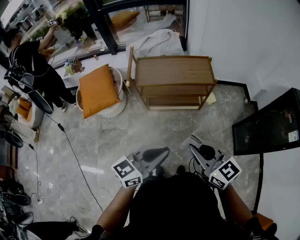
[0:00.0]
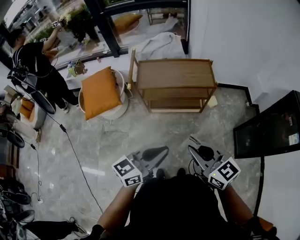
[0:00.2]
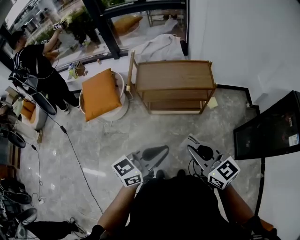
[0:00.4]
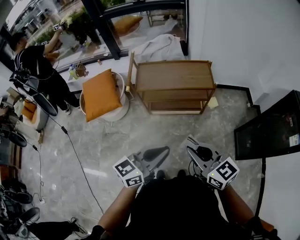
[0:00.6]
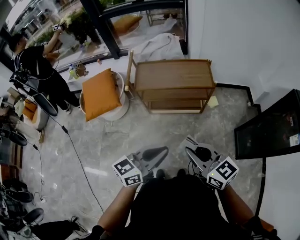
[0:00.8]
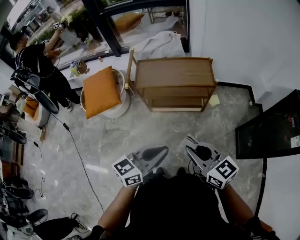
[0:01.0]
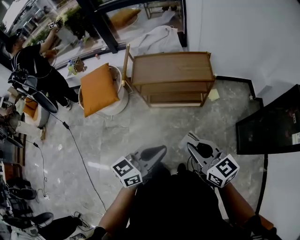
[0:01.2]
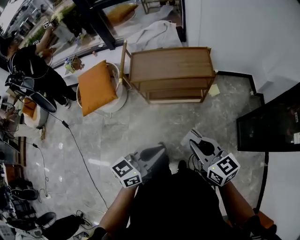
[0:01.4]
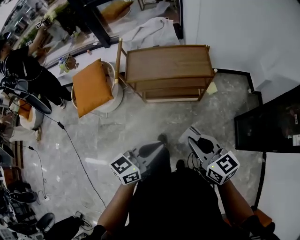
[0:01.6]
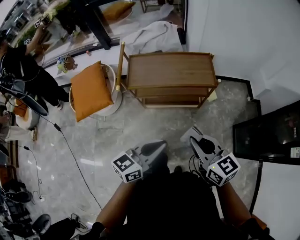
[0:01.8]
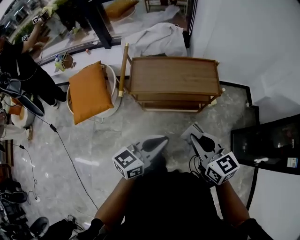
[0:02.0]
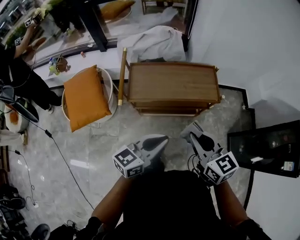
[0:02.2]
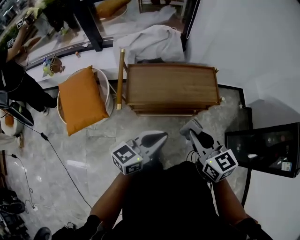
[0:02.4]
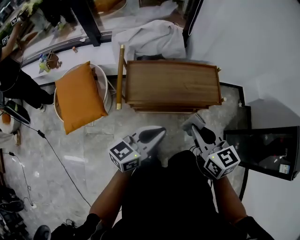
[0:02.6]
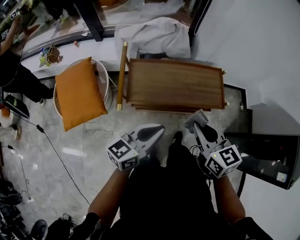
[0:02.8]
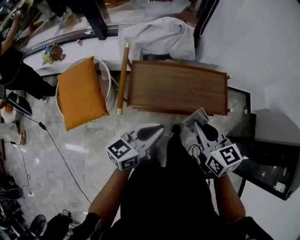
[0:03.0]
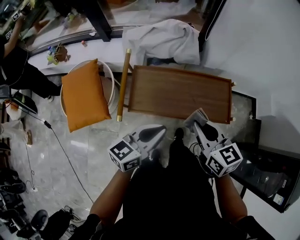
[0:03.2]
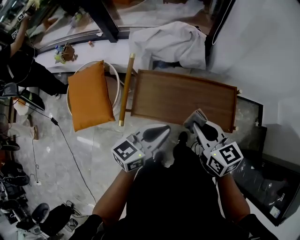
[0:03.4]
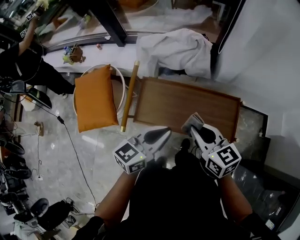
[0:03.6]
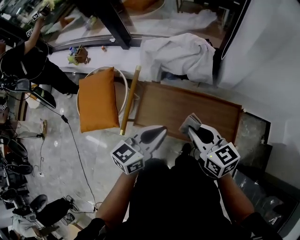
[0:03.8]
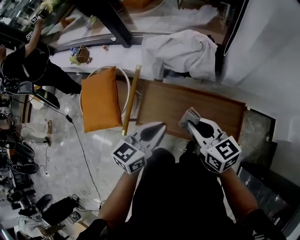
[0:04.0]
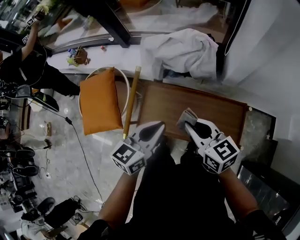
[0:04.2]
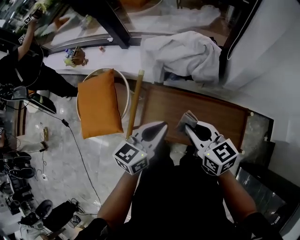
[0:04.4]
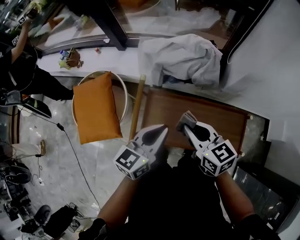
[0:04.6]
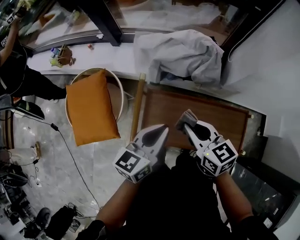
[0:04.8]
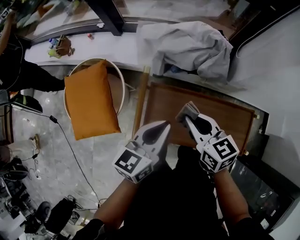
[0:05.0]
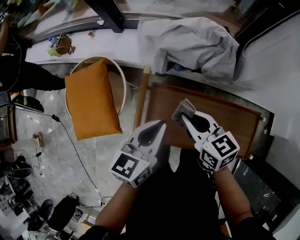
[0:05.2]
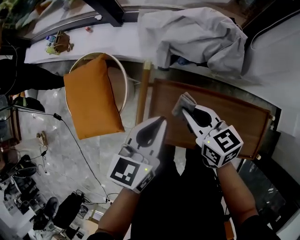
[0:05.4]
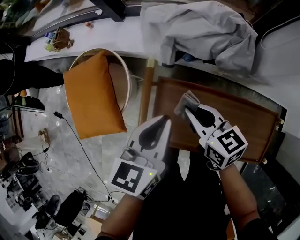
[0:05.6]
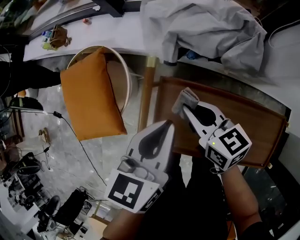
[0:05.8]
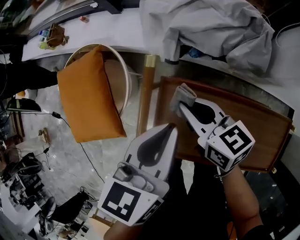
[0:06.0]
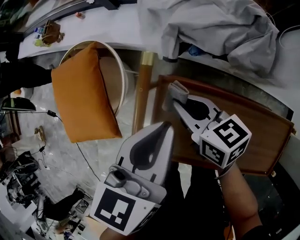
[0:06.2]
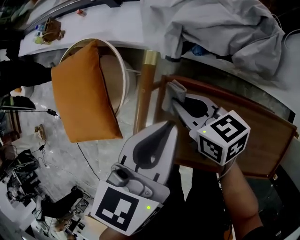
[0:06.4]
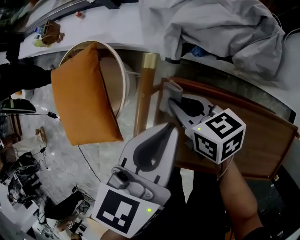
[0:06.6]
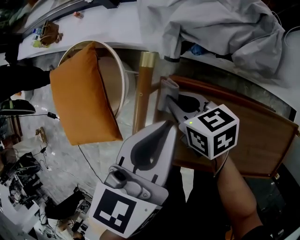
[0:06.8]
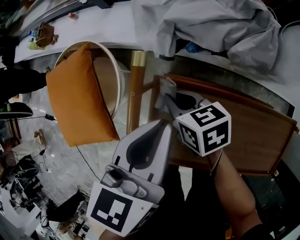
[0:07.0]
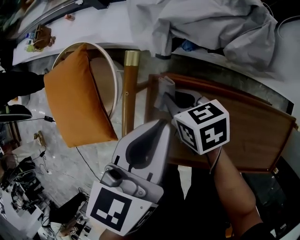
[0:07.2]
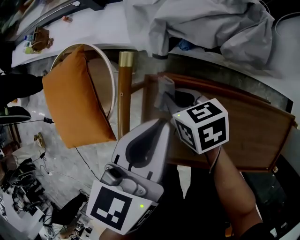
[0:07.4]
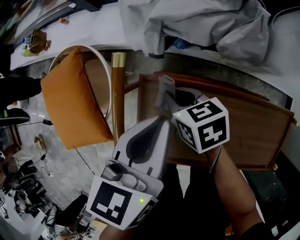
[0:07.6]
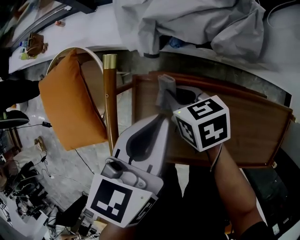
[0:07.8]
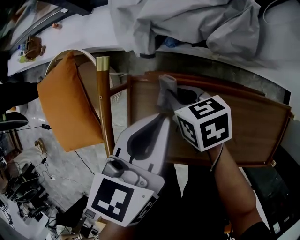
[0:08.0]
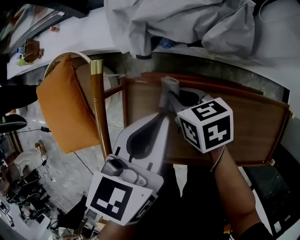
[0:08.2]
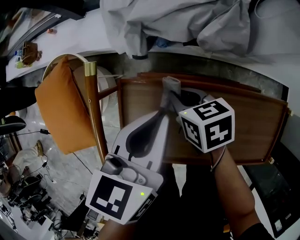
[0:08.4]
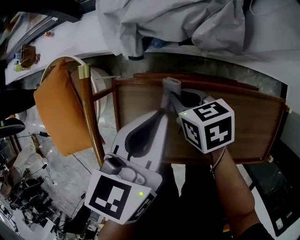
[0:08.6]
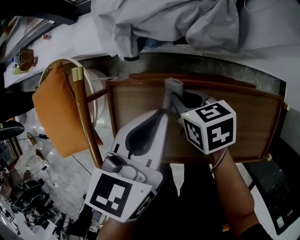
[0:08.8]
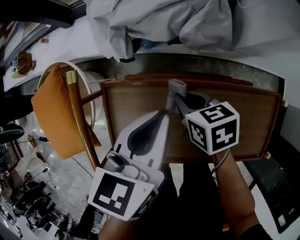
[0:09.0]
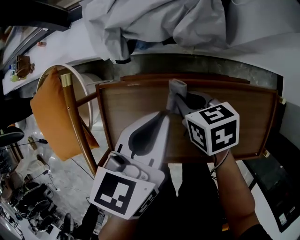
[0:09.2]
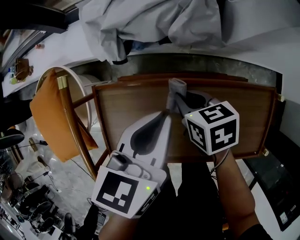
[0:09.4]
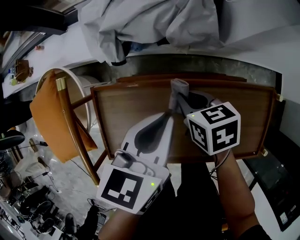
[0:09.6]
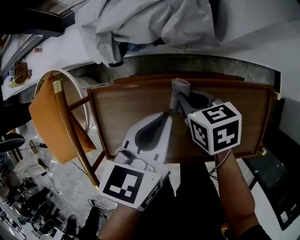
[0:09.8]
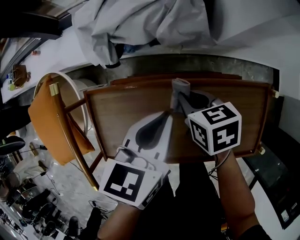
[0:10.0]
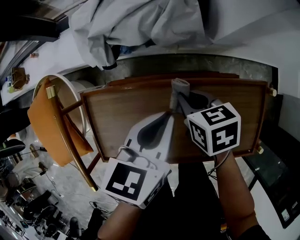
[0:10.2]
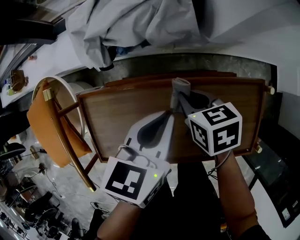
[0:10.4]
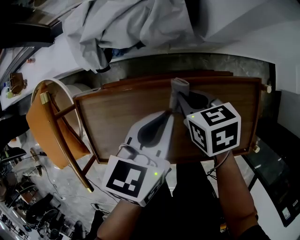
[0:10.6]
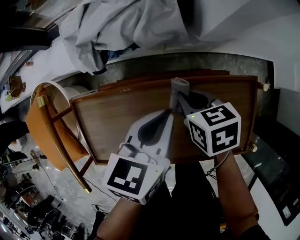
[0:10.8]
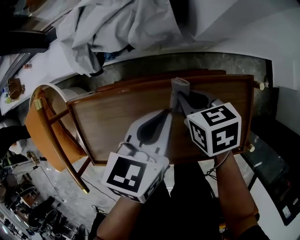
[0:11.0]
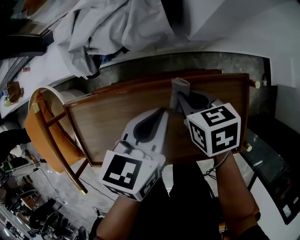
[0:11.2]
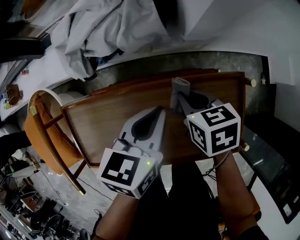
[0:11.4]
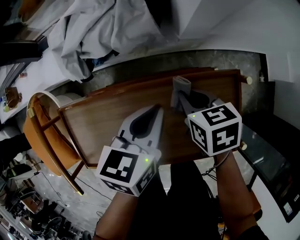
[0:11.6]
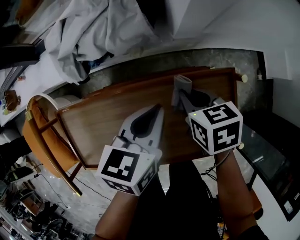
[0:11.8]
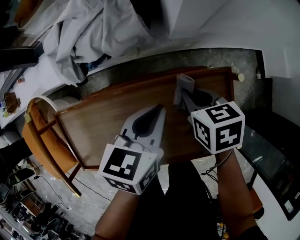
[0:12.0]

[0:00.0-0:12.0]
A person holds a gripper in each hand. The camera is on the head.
0:00.0 to 0:01.6: The right gripper travels to the right and forward by some 10 cm, while the left gripper travels forward and to the right by approximately 10 cm.
0:01.6 to 0:03.0: Both grippers move forward and to the left, some 35 cm.
0:03.0 to 0:04.4: The grippers both shift forward by about 20 cm. The left gripper swivels roughly 20 degrees, while the right gripper changes its angle by roughly 20 degrees.
0:04.4 to 0:06.0: The right gripper heads downward, forward and to the left, covering about 30 cm; the left gripper goes approximately 20 cm forward, downward and to the left, and turns by roughly 20 degrees.
0:06.0 to 0:07.6: The left gripper shifts by some 5 cm, while the right gripper goes some 10 cm downward, and turns by approximately 20 degrees.
0:07.6 to 0:09.0: Both grippers travel together to the right, roughly 10 cm.
0:09.0 to 0:10.4: Both grippers travel together to the right, some 10 cm.
0:10.4 to 0:12.0: The grippers both shift to the right by roughly 15 cm.

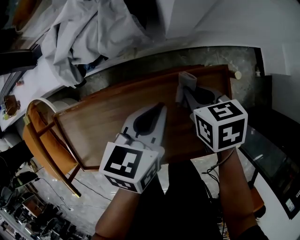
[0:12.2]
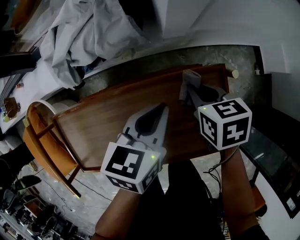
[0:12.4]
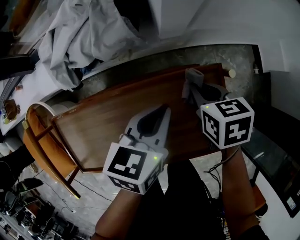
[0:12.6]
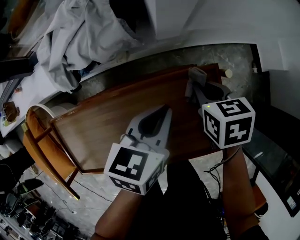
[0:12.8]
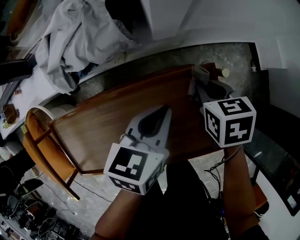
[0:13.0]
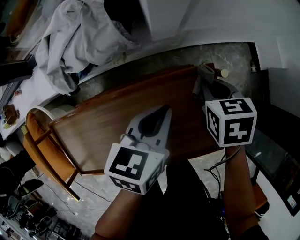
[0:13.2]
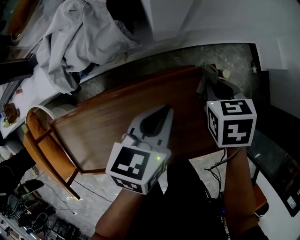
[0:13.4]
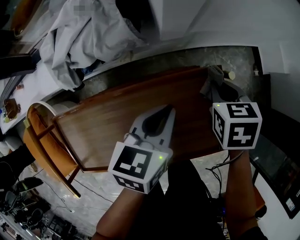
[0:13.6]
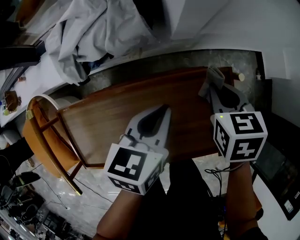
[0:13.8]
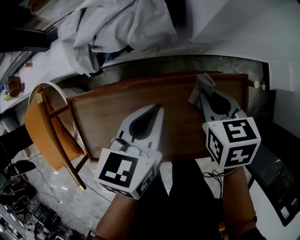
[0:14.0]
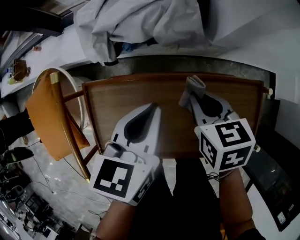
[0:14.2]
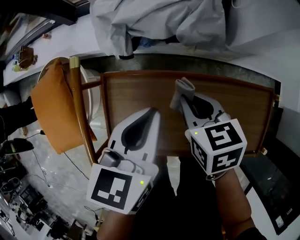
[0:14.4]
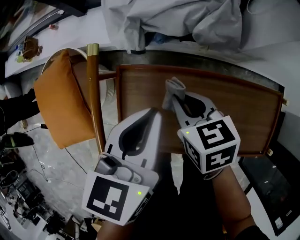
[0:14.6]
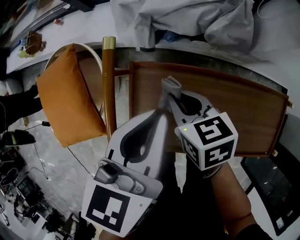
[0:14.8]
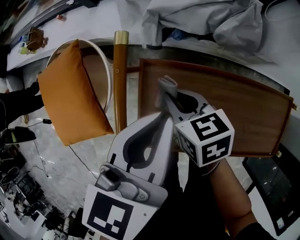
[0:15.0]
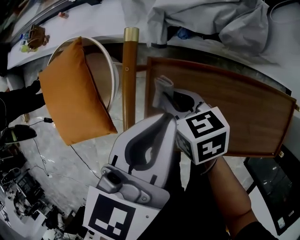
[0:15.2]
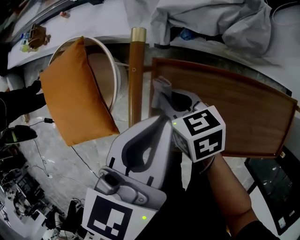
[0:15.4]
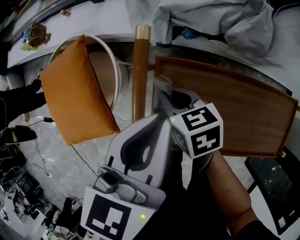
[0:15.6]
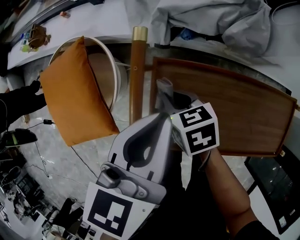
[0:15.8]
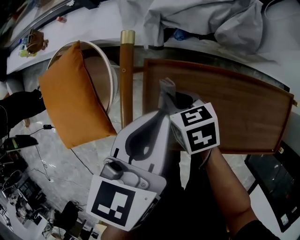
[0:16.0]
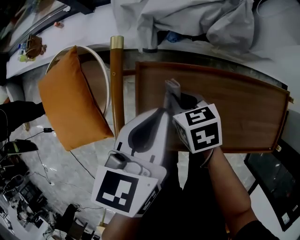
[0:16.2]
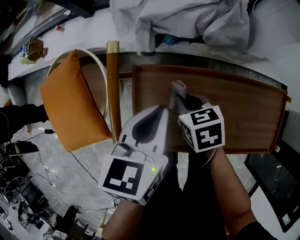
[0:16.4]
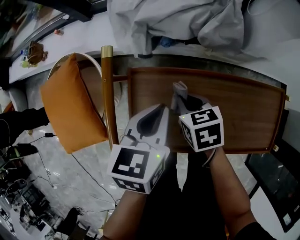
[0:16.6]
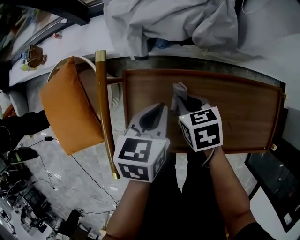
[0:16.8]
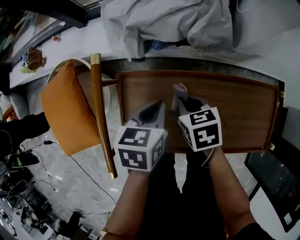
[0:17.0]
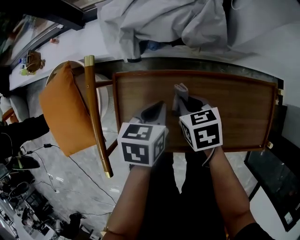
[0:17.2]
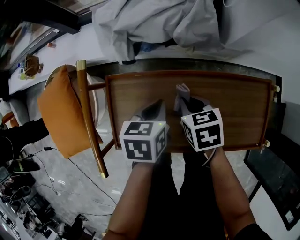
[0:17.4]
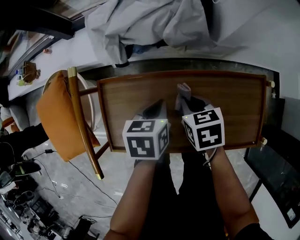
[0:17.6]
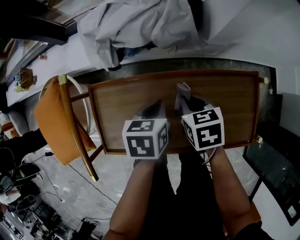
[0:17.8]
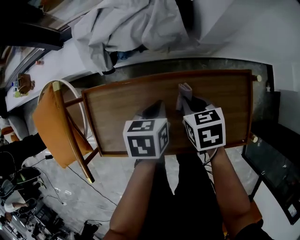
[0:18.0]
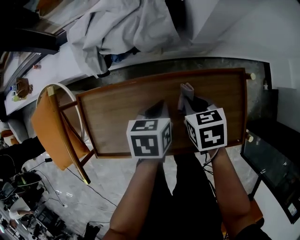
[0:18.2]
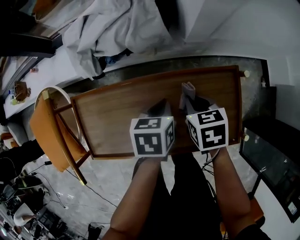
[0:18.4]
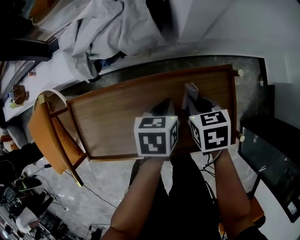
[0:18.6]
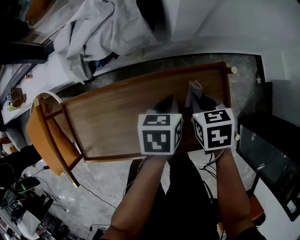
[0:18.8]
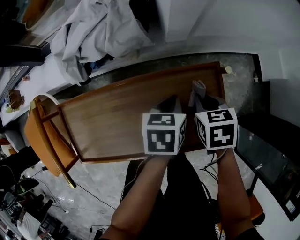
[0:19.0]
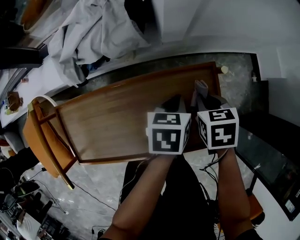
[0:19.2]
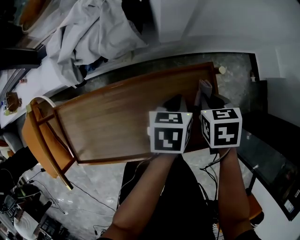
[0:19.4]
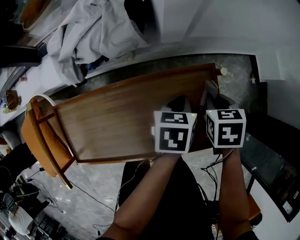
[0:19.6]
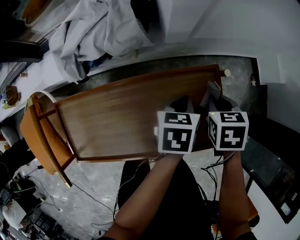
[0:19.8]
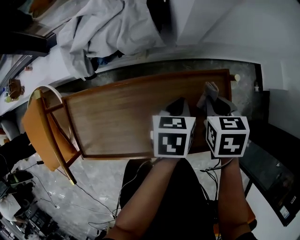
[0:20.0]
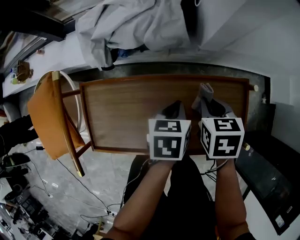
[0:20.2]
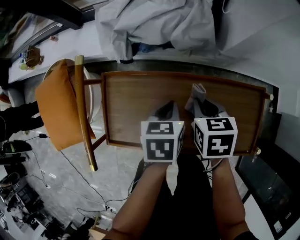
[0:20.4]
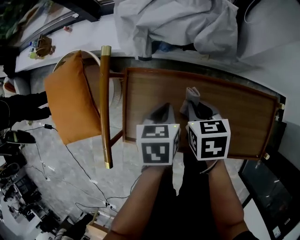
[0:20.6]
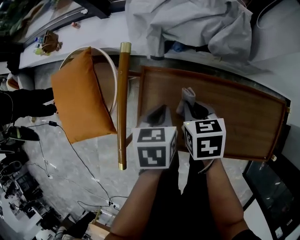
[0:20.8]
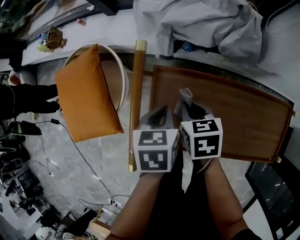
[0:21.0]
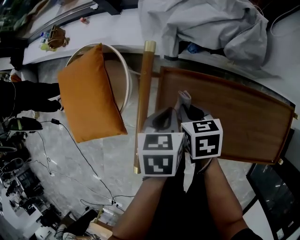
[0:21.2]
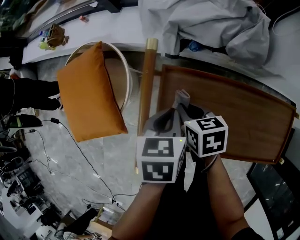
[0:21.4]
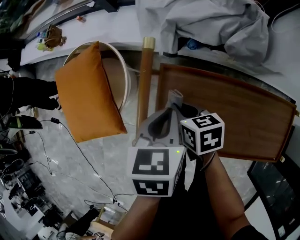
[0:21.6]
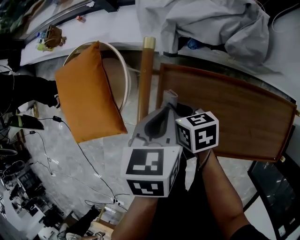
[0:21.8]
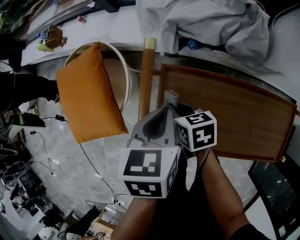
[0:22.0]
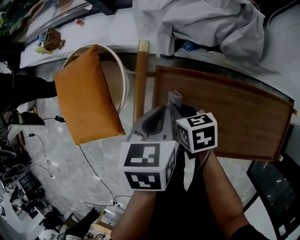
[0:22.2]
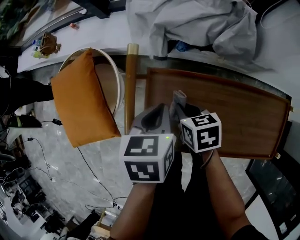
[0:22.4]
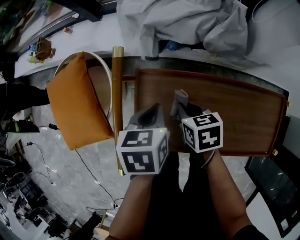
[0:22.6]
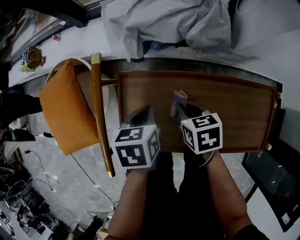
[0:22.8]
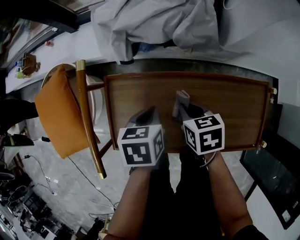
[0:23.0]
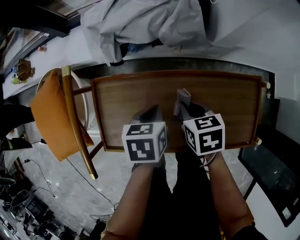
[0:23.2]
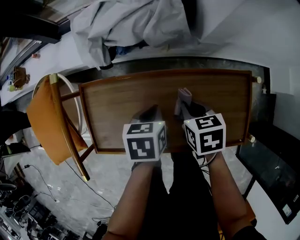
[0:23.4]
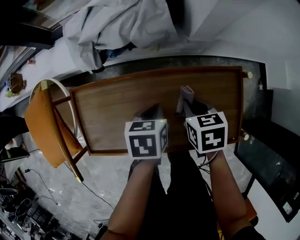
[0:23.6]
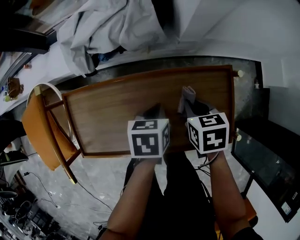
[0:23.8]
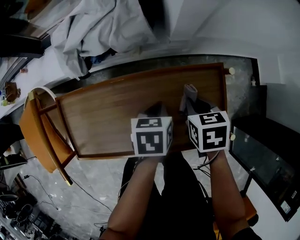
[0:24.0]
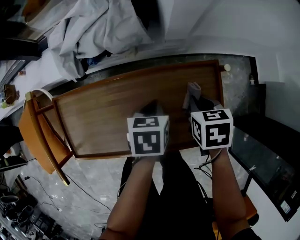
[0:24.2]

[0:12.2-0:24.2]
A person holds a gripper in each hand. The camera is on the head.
0:12.2 to 0:13.8: The right gripper heads upward, covering approximately 5 cm.
0:13.8 to 0:15.2: The left gripper moves some 35 cm, and swivels some 20 degrees, while the right gripper changes place by about 50 cm, and turns by approximately 40 degrees.
0:15.2 to 0:16.6: The right gripper moves to the right, some 10 cm, while the left gripper goes approximately 10 cm downward.
0:16.6 to 0:18.2: The right gripper shifts approximately 25 cm to the right. Meanwhile the left gripper travels to the right and downward by some 25 cm.
0:18.2 to 0:19.8: The two grippers go approximately 20 cm to the right.
0:19.8 to 0:21.2: Both grippers are carried about 50 cm. The left gripper rotates some 30 degrees, while the right gripper swivels roughly 30 degrees.
0:21.2 to 0:22.6: The right gripper is displaced to the right by about 5 cm.
0:22.6 to 0:24.2: The left gripper ends up approximately 35 cm from where it was, while the right gripper moves roughly 40 cm, and changes its angle by roughly 20 degrees.
